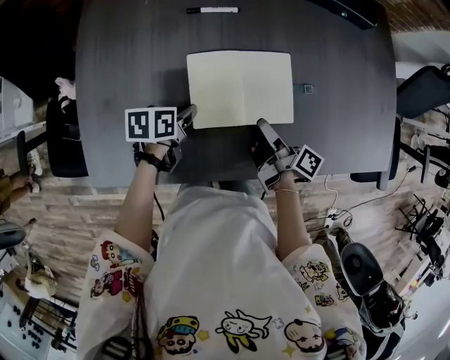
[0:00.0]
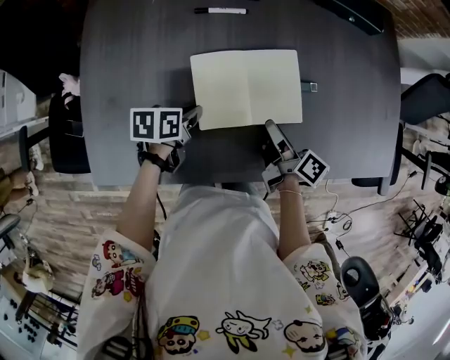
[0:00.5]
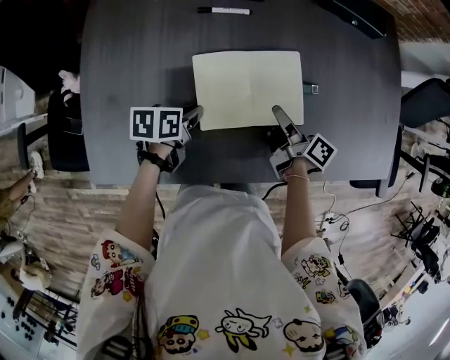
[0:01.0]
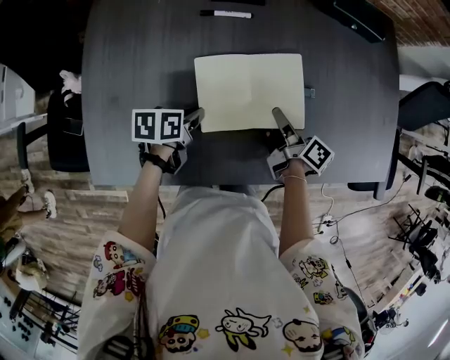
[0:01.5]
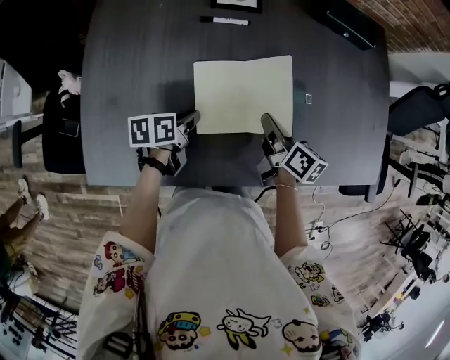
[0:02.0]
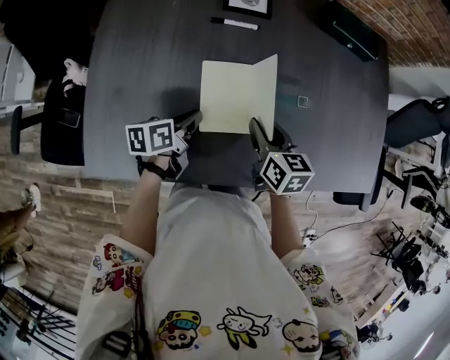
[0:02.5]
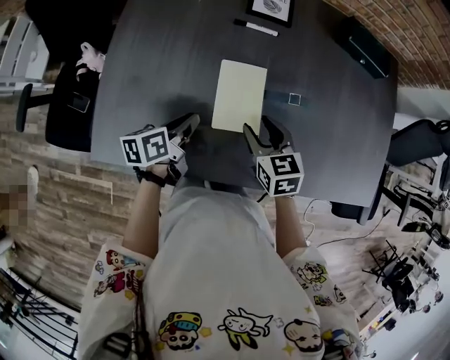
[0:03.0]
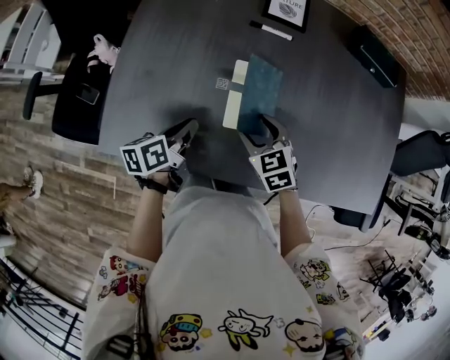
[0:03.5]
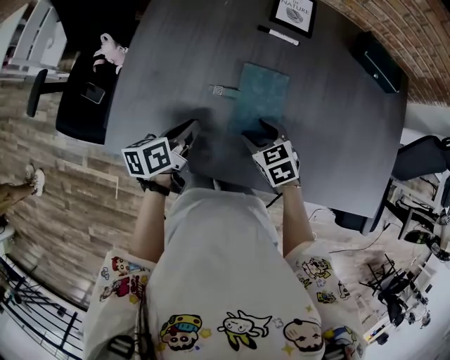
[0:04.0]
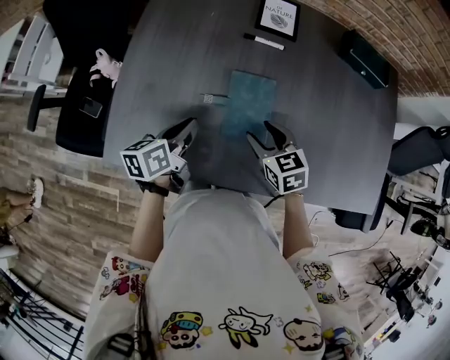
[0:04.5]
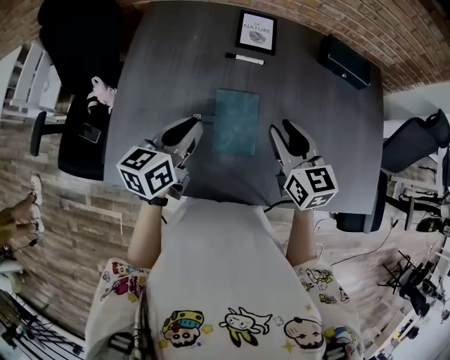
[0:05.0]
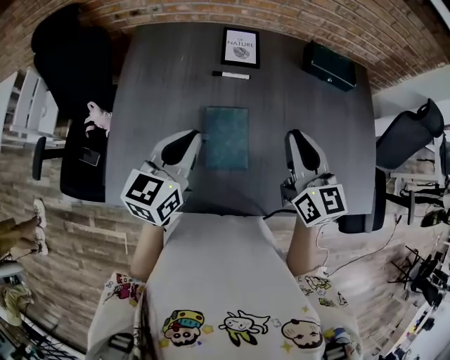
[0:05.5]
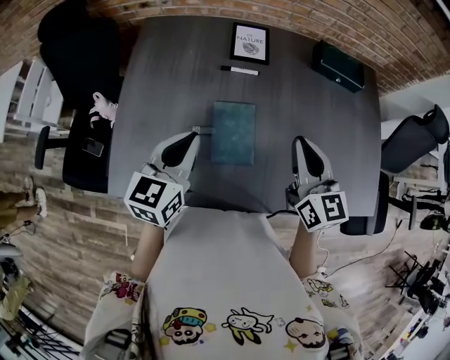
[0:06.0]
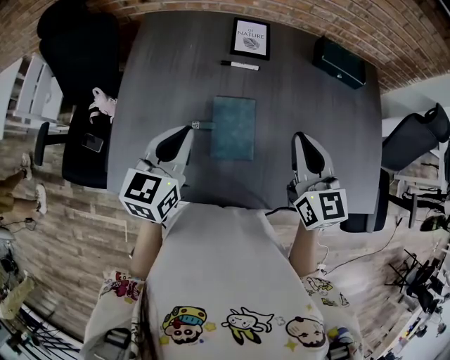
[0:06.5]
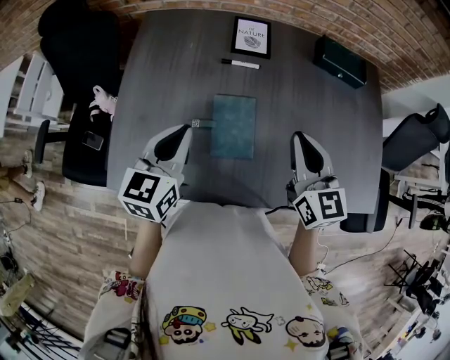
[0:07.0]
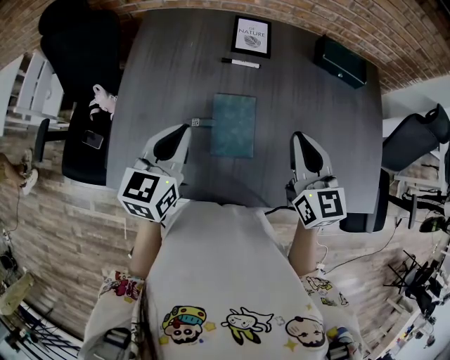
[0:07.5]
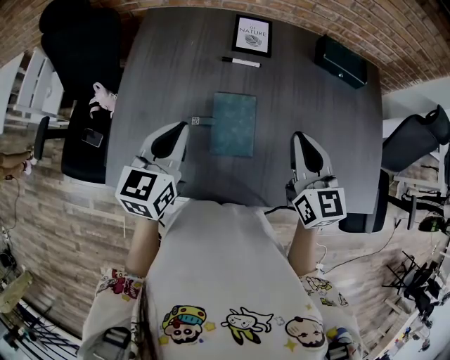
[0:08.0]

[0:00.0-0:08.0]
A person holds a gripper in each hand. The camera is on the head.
0:00.0 to 0:02.0: The right gripper ends up approximately 5 cm from where it was, rotates about 40 degrees, and closes.
0:02.0 to 0:04.0: The right gripper changes place by about 15 cm, twists roughly 60 degrees counterclockwise, seen from behind, and opens its fingers; the left gripper ends up roughly 15 cm from where it was, and changes its angle by approximately 30 degrees.
0:04.0 to 0:06.0: The left gripper shifts approximately 20 cm upward, and twists approximately 50 degrees clockwise, seen from behind, while the right gripper goes roughly 30 cm upward and to the right, points its fingers some 40 degrees further upward, and closes.
0:06.0 to 0:08.0: The grippers make only small movements.

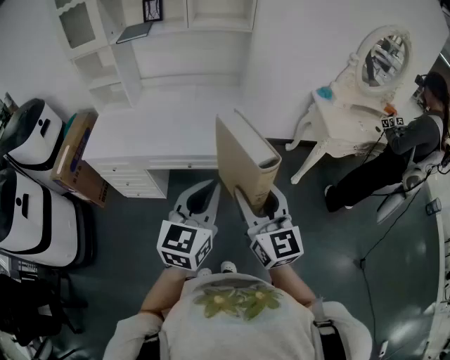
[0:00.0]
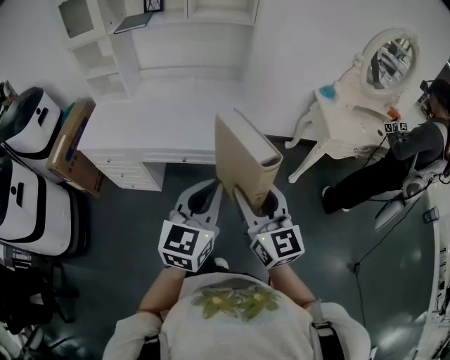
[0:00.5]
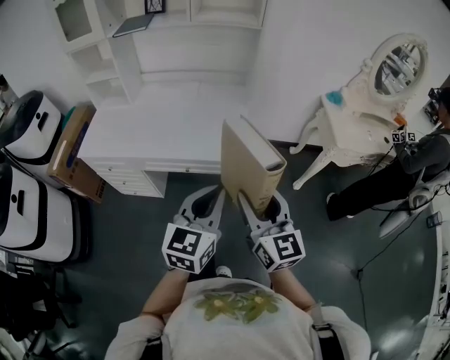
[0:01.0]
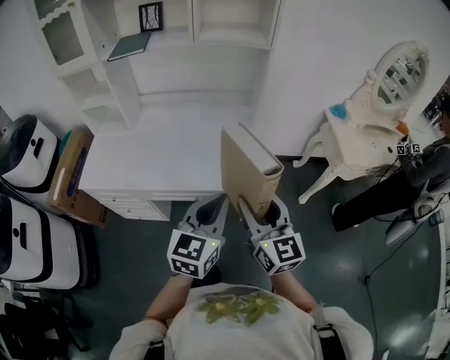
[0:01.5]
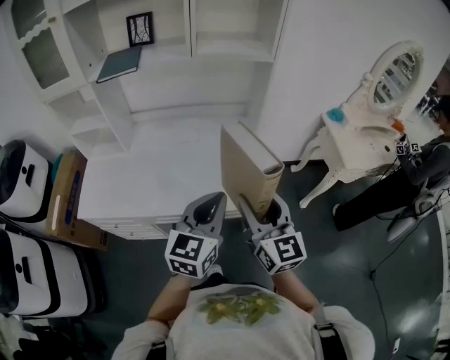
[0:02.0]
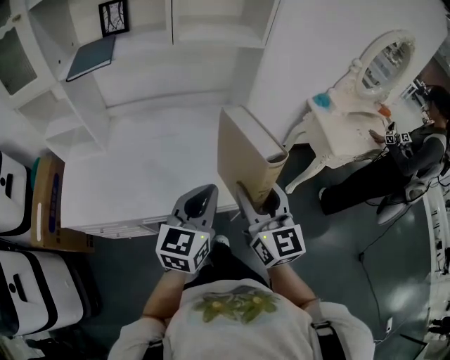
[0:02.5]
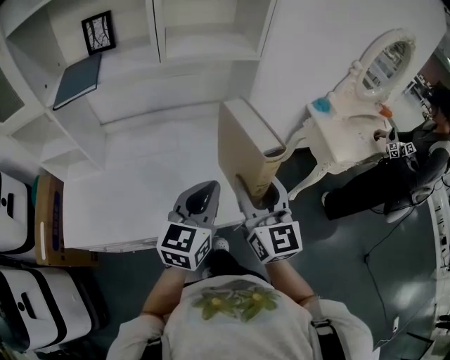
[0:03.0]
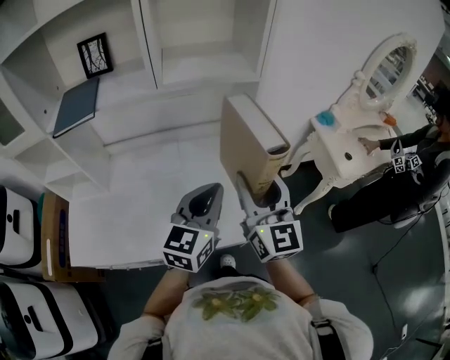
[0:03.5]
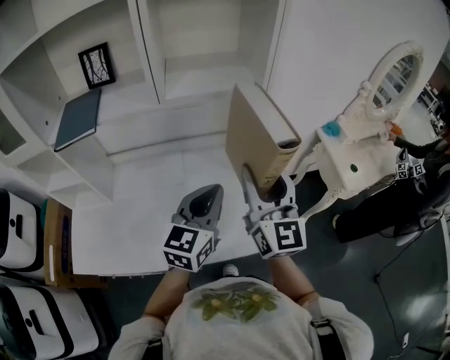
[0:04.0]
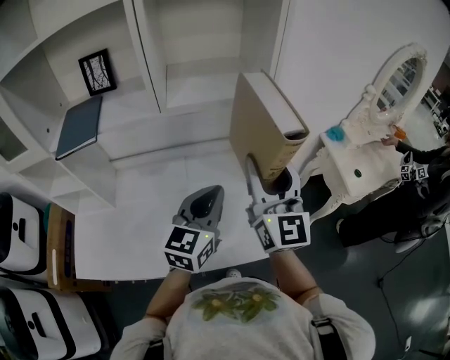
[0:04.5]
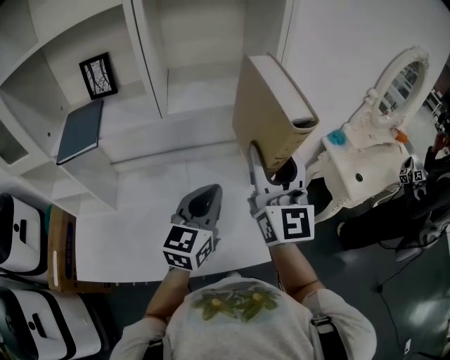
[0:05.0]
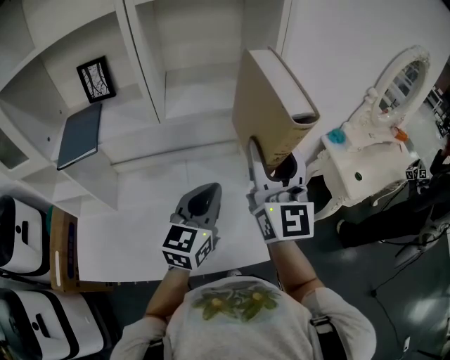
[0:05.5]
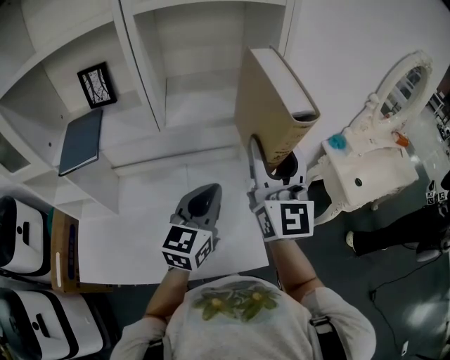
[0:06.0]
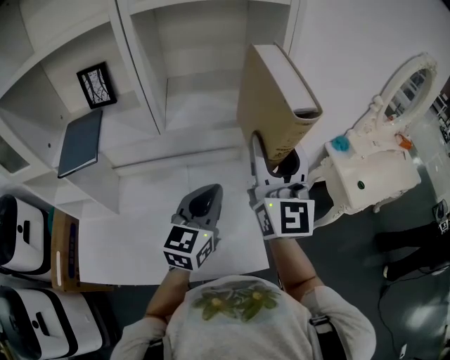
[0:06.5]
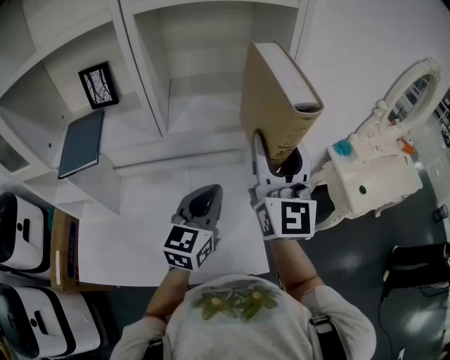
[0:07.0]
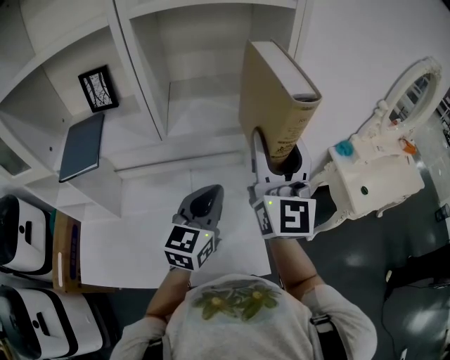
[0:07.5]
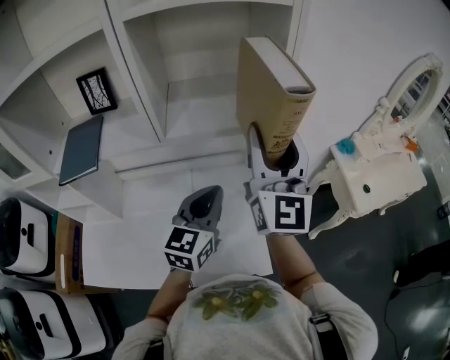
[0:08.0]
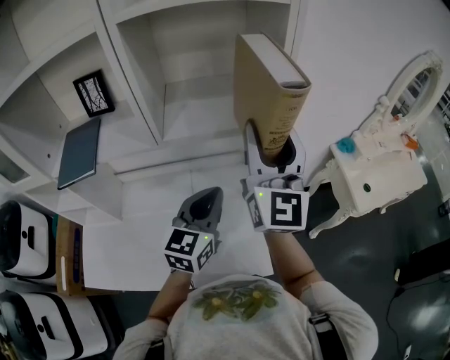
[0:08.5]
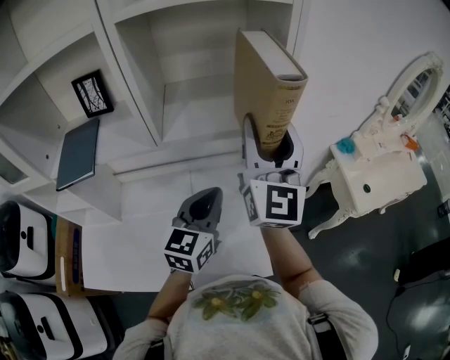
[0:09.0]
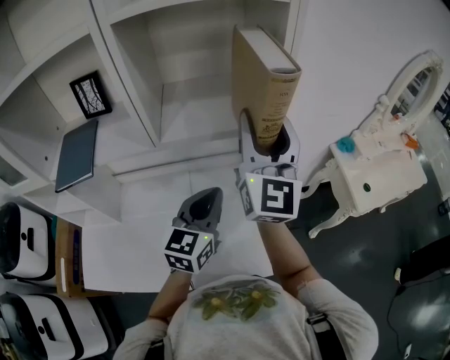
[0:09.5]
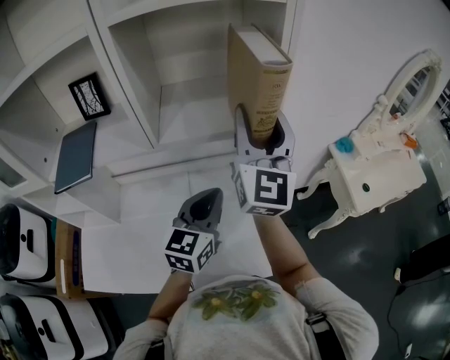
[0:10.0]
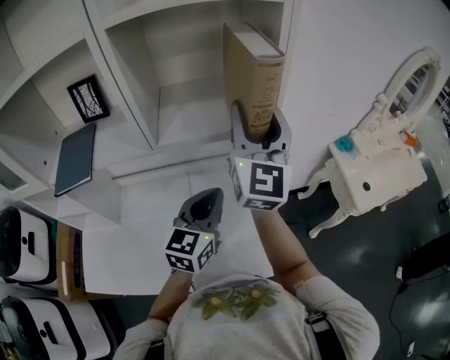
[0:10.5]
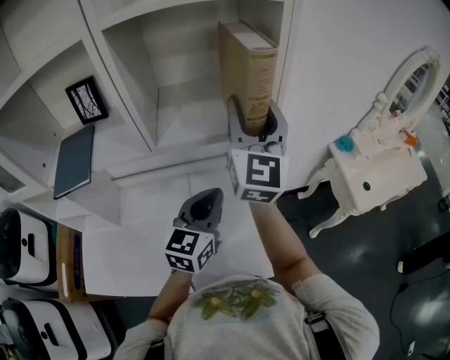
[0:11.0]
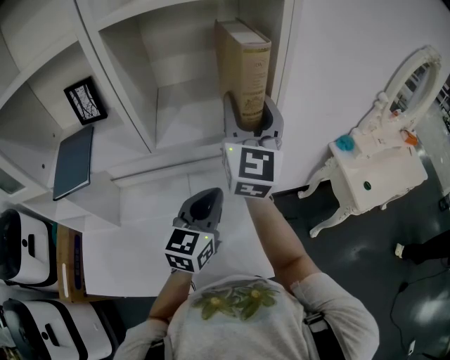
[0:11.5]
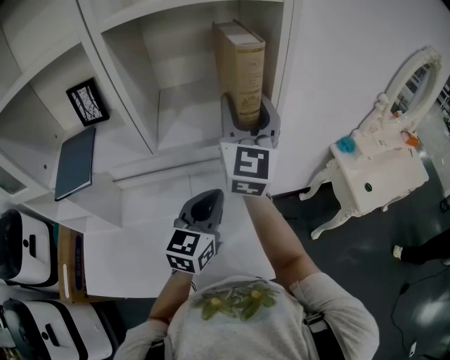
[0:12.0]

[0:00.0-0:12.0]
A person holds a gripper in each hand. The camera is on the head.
0:00.0 to 0:02.0: The two grippers go approximately 25 cm forward.
0:02.0 to 0:04.0: The two grippers go about 25 cm forward.
0:04.0 to 0:06.0: The right gripper shifts about 15 cm upward and forward. The left gripper moves forward, some 5 cm.
0:06.0 to 0:08.0: The right gripper shifts by some 5 cm.
0:08.0 to 0:10.0: The right gripper moves forward, about 5 cm.
0:10.0 to 0:12.0: The right gripper moves about 5 cm.

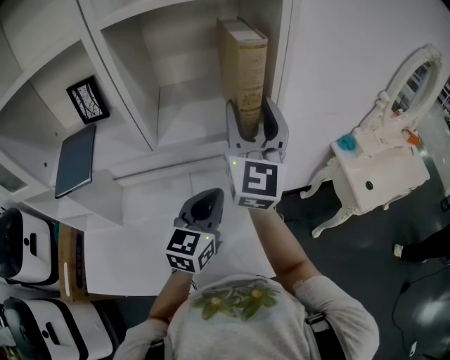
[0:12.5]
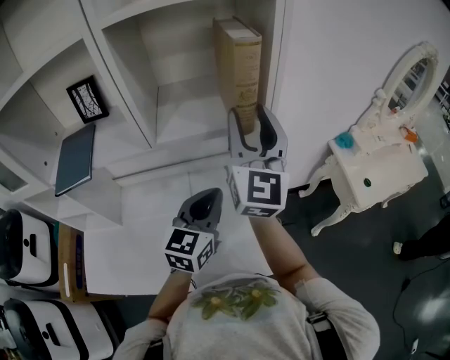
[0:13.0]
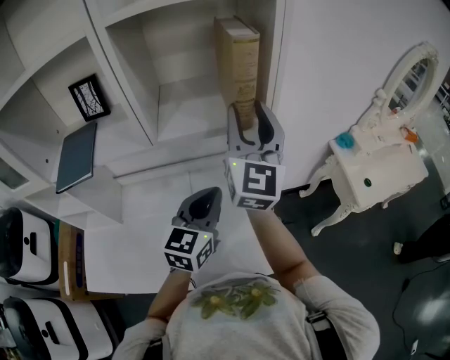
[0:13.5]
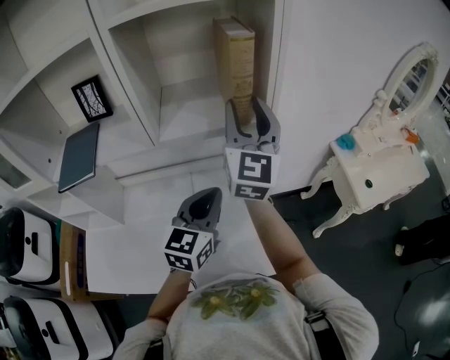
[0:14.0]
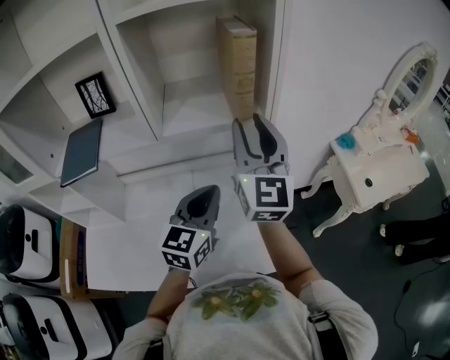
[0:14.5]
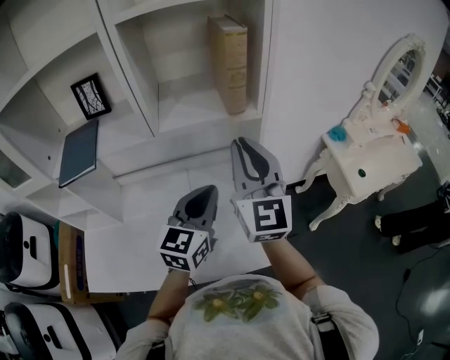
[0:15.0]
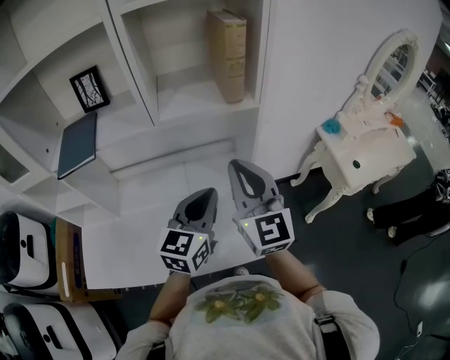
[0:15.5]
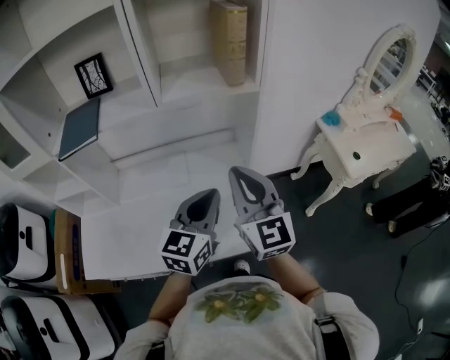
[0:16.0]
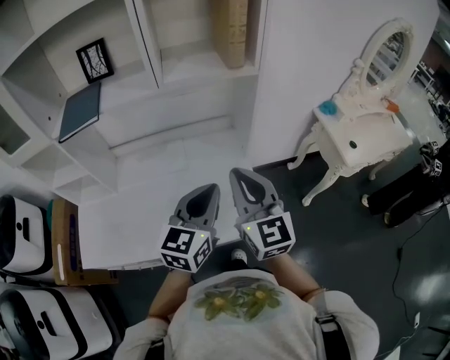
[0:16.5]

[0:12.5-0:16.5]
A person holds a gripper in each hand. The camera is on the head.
0:12.5 to 0:14.5: The right gripper heads backward, covering about 5 cm.
0:14.5 to 0:16.5: The left gripper moves backward, about 15 cm. The right gripper travels backward and downward by approximately 25 cm, and closes.

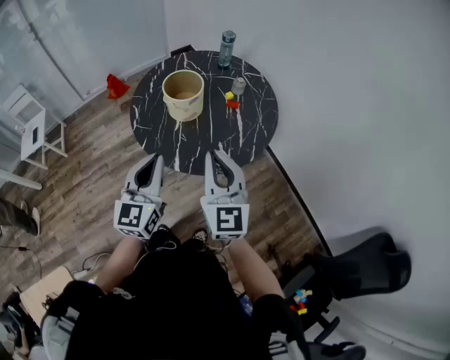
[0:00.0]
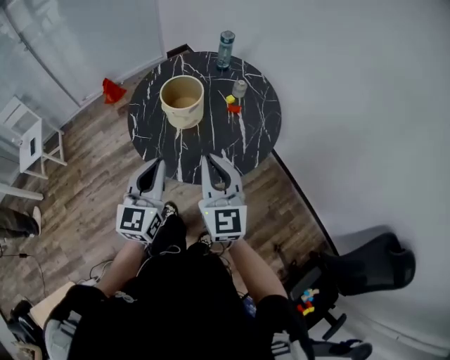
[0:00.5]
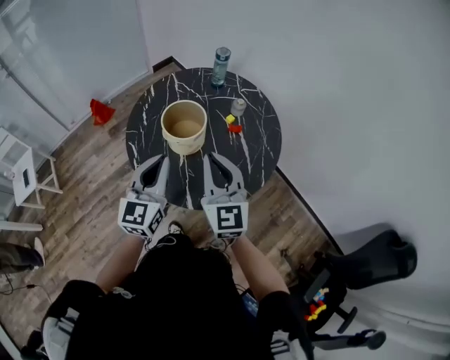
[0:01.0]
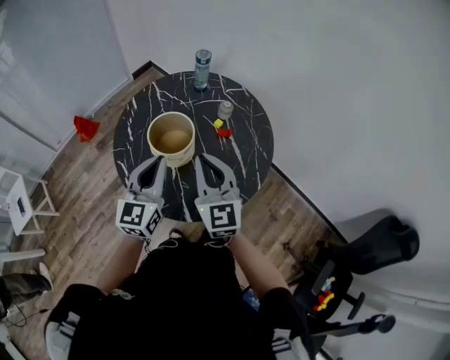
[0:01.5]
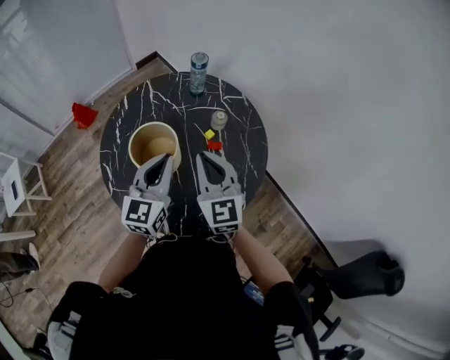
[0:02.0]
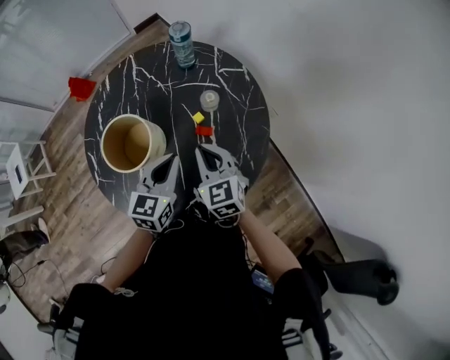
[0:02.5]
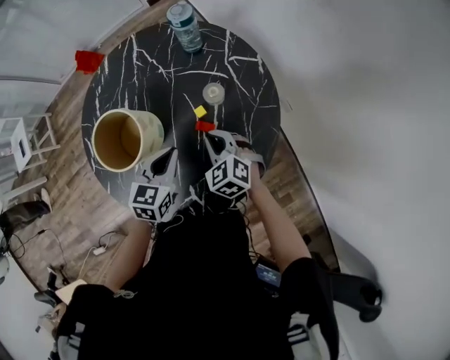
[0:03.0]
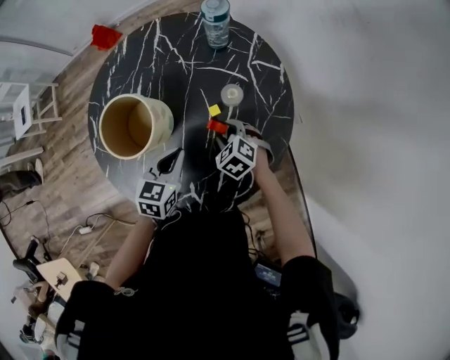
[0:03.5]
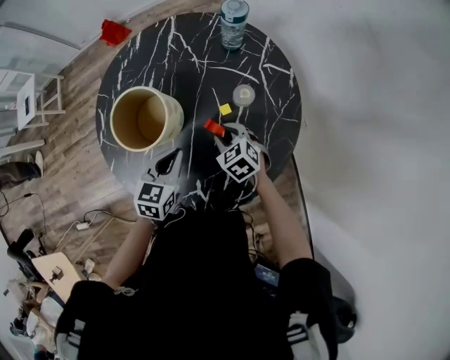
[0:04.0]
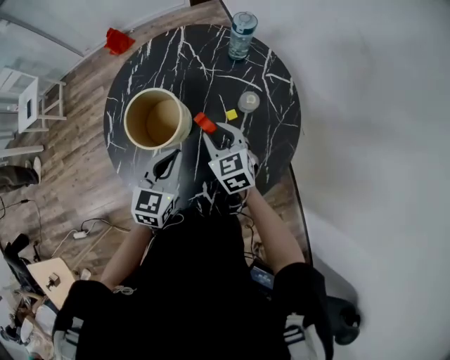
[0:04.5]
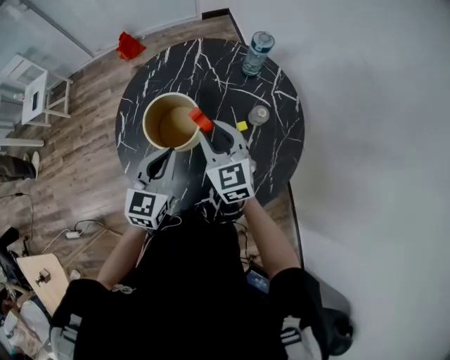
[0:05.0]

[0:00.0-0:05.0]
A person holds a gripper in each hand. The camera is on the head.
0:00.0 to 0:02.5: The two grippers go some 40 cm forward and downward. The right gripper tips its fingers downward by approximately 30 degrees. Meanwhile the left gripper rotates approximately 30 degrees.
0:02.5 to 0:05.0: The left gripper heads to the left, covering roughly 10 cm, reaches about 10 cm downward, then returns, and swivels about 20 degrees. The right gripper moves to the left and forward, roughly 10 cm, reaches some 20 cm downward, then returns, swivels roughly 20 degrees, and opens.
